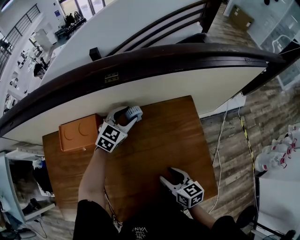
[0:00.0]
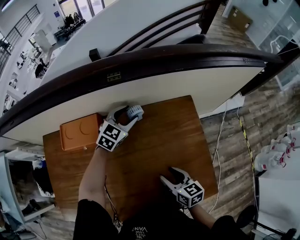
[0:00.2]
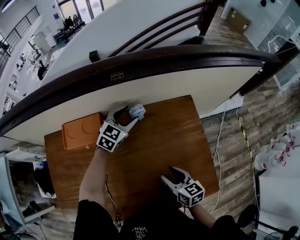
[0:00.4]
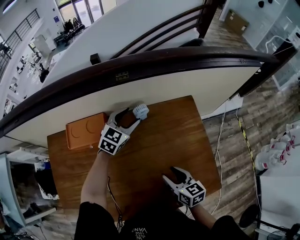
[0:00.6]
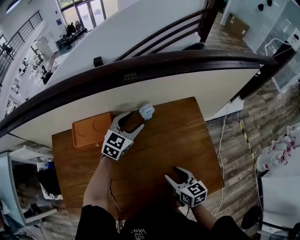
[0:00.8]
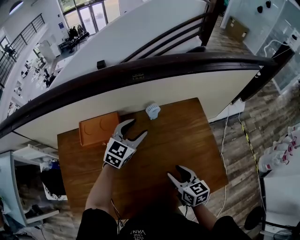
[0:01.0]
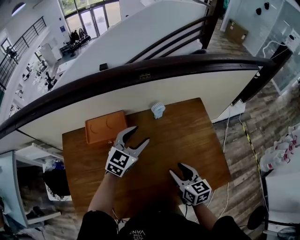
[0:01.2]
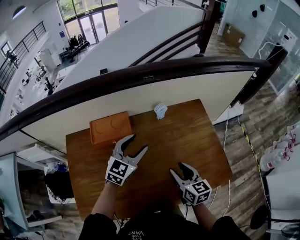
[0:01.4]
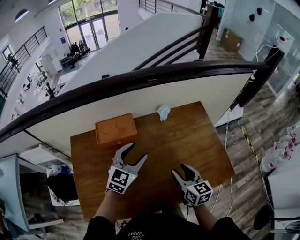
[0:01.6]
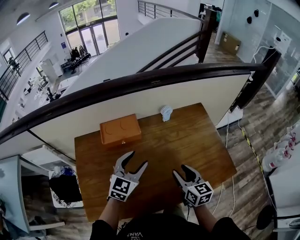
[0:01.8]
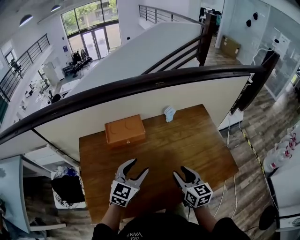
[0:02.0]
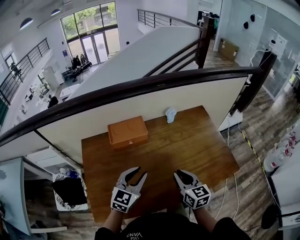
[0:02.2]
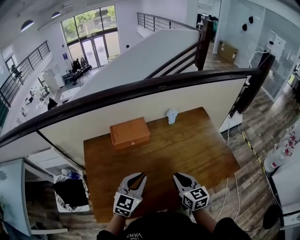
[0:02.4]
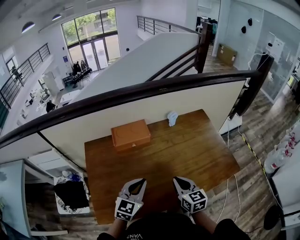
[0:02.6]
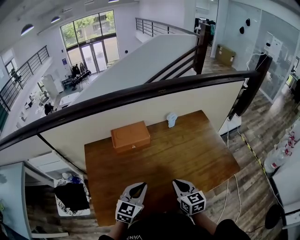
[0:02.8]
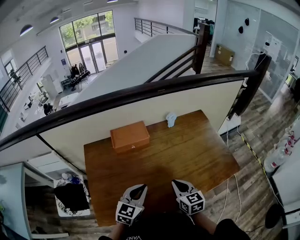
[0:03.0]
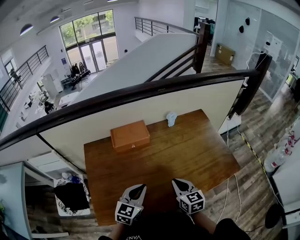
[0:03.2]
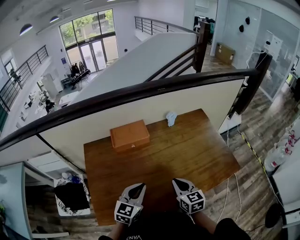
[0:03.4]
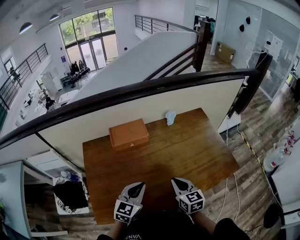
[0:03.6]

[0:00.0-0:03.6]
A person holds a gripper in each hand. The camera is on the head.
0:00.0 to 0:01.8: The left gripper shifts about 35 cm backward and to the left. The right gripper moves to the left, upward and backward, roughly 20 cm, and changes its angle by roughly 20 degrees.
0:01.8 to 0:03.6: The right gripper heads backward and to the left, covering roughly 10 cm, and closes up, while the left gripper moves backward, about 15 cm, and closes its fingers.

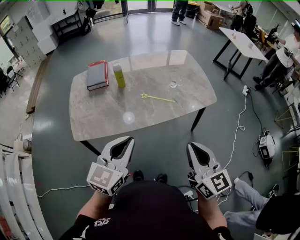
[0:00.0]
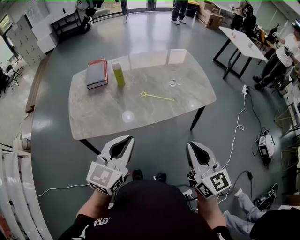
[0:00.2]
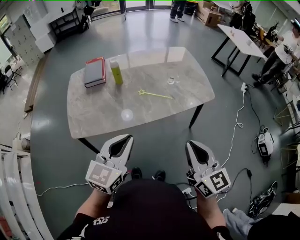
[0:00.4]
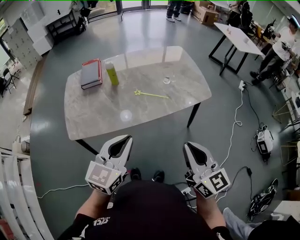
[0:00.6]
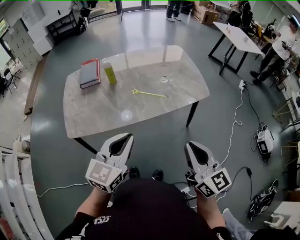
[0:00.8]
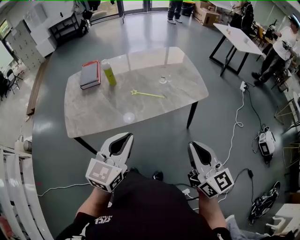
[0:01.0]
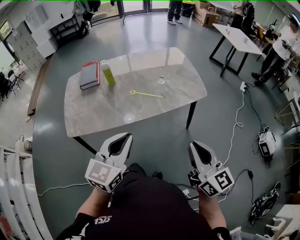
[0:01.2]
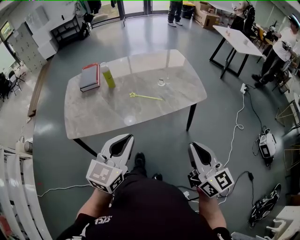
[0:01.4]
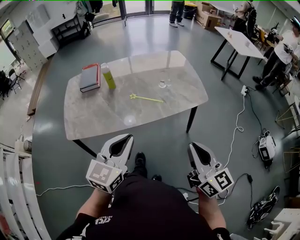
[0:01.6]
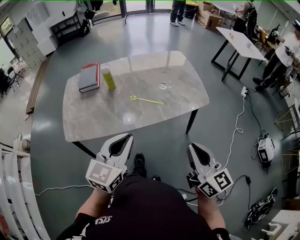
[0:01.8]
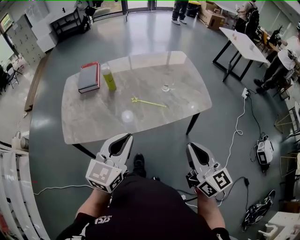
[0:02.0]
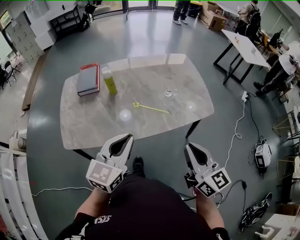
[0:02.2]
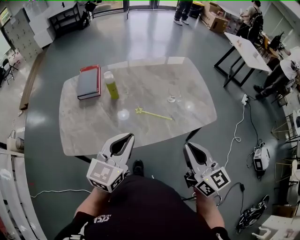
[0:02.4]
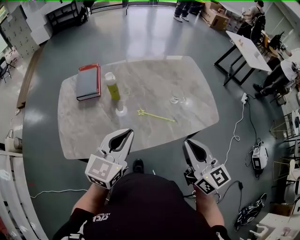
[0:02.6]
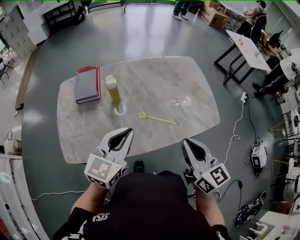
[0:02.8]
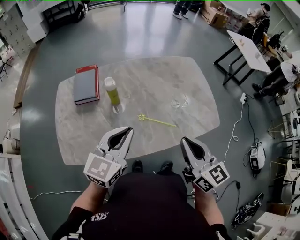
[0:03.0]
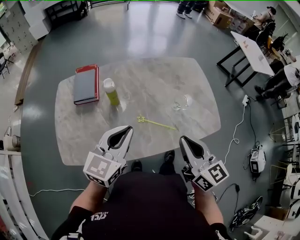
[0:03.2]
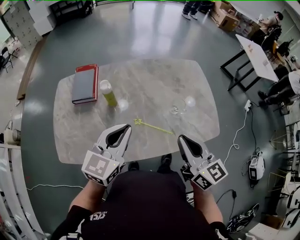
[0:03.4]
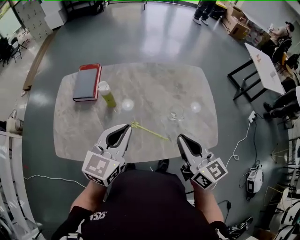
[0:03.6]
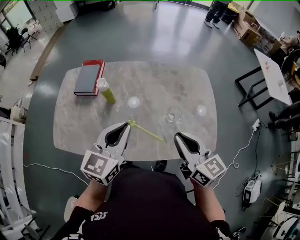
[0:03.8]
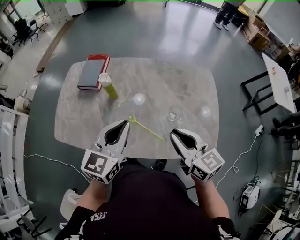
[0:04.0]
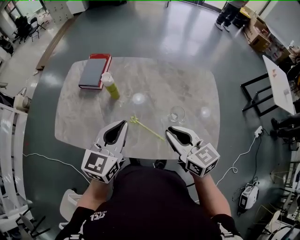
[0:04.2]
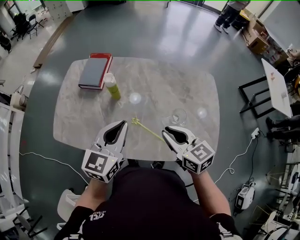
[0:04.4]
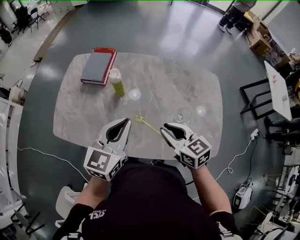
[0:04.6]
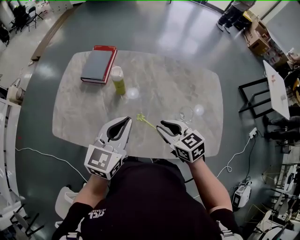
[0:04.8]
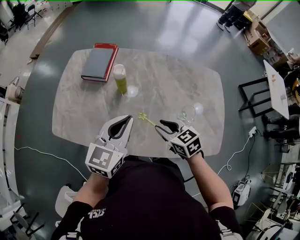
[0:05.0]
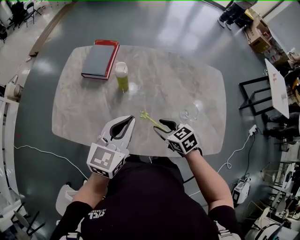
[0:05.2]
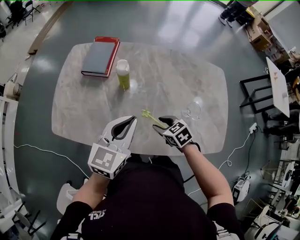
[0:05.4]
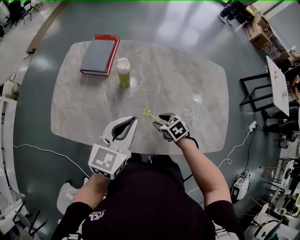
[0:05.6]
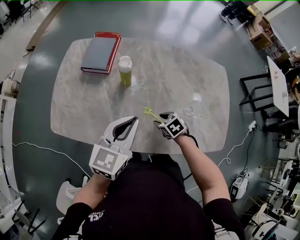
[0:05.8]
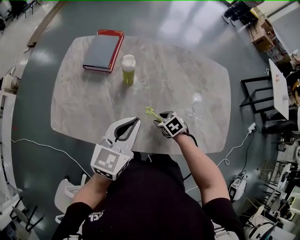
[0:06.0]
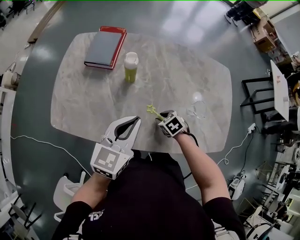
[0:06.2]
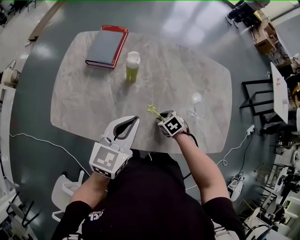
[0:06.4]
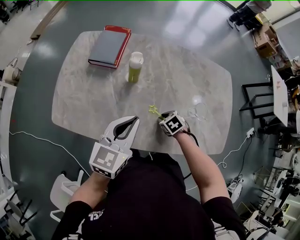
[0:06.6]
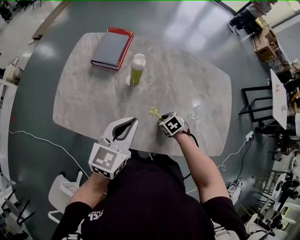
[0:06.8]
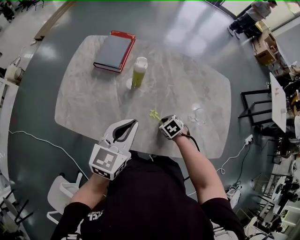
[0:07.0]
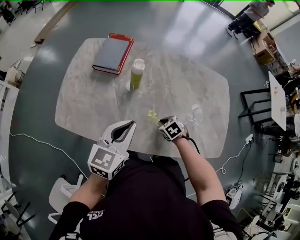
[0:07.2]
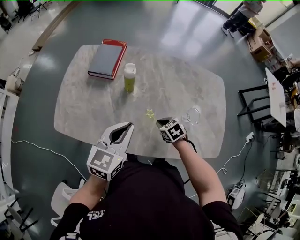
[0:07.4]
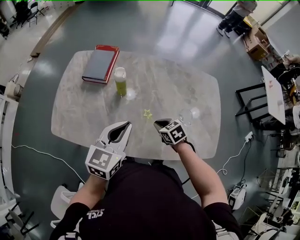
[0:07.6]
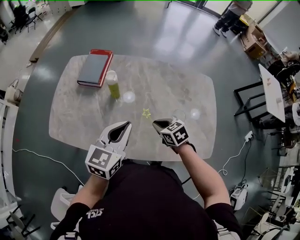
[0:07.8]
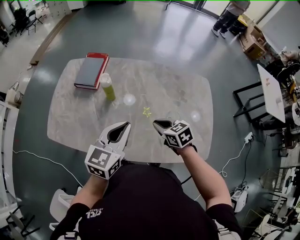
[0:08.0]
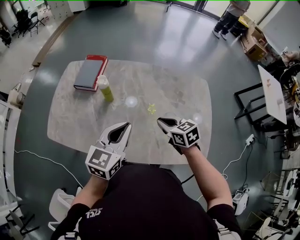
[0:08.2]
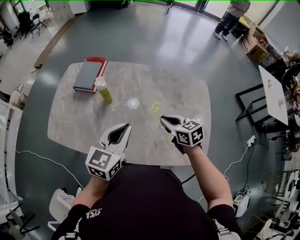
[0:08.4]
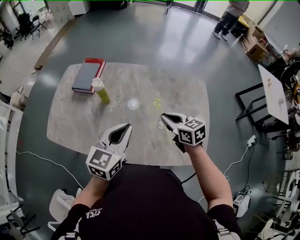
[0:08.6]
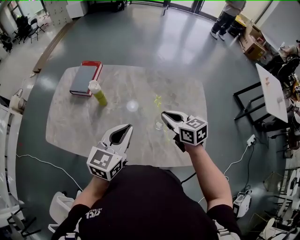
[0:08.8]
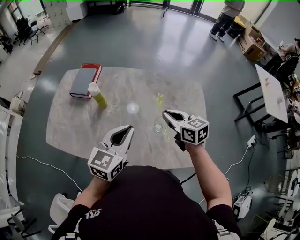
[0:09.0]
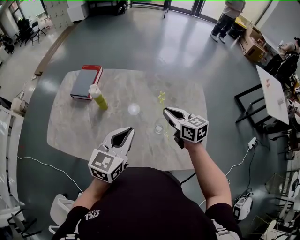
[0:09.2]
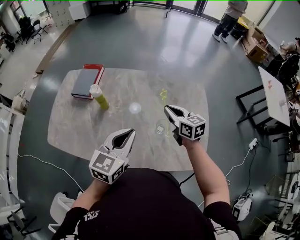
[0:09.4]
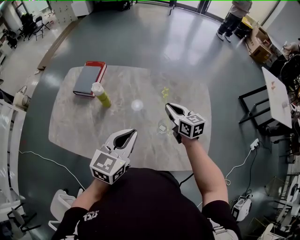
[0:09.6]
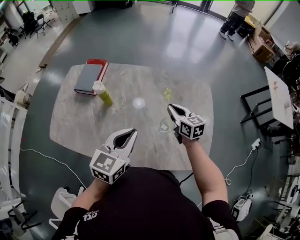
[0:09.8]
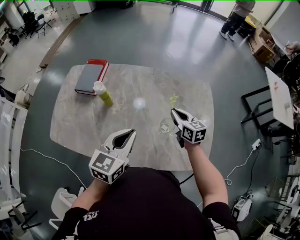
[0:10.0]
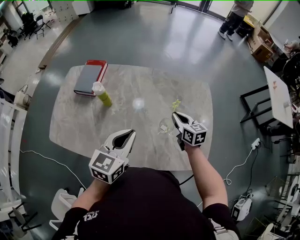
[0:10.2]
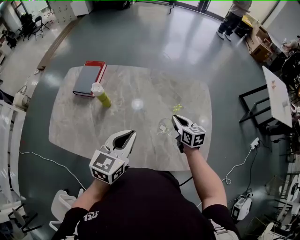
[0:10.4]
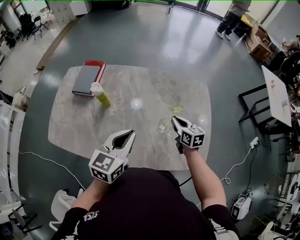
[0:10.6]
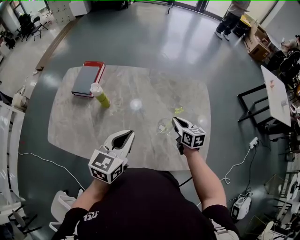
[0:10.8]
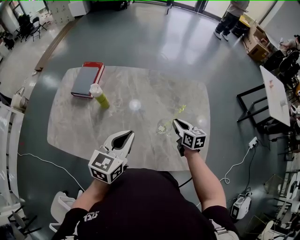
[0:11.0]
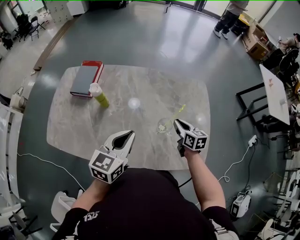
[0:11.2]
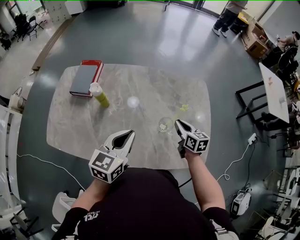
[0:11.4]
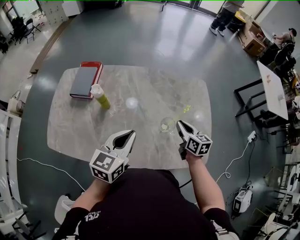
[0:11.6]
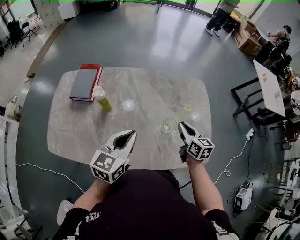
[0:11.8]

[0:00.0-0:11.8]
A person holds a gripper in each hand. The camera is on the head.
0:00.0 to 0:01.4: The two grippers go some 10 cm to the right.
0:01.4 to 0:03.0: The right gripper travels forward and to the left by roughly 30 cm, while the left gripper heads forward, covering about 25 cm.
0:03.0 to 0:04.4: The right gripper moves approximately 15 cm, and changes its angle by some 40 degrees. Meanwhile the left gripper ends up about 10 cm from where it was, and swivels about 30 degrees.
0:04.4 to 0:06.0: The left gripper travels downward by roughly 5 cm. The right gripper heads downward, covering approximately 30 cm, tilts its fingers about 40 degrees downward, and opens.
0:06.0 to 0:07.4: The right gripper closes.
0:07.4 to 0:08.8: The left gripper shifts some 15 cm to the right. The right gripper is displaced upward and to the right by roughly 25 cm, and points its fingers approximately 40 degrees further upward.
0:08.8 to 0:10.4: The right gripper is displaced downward and to the right by some 10 cm.
0:10.4 to 0:11.8: The right gripper shifts approximately 5 cm backward.

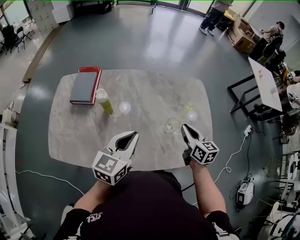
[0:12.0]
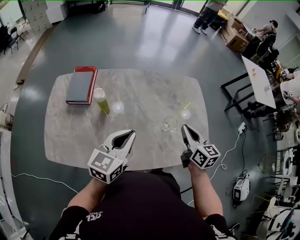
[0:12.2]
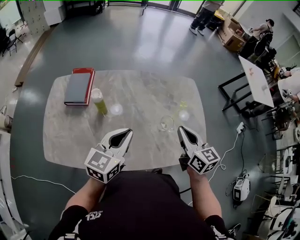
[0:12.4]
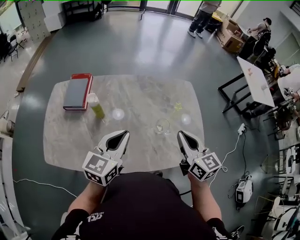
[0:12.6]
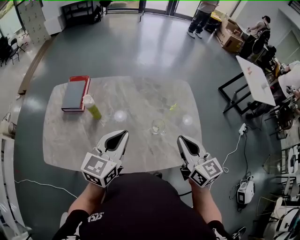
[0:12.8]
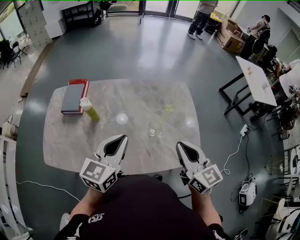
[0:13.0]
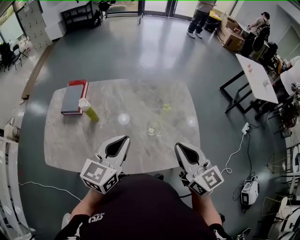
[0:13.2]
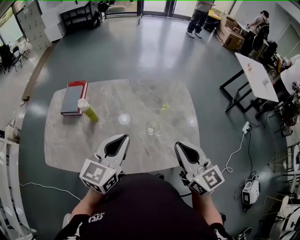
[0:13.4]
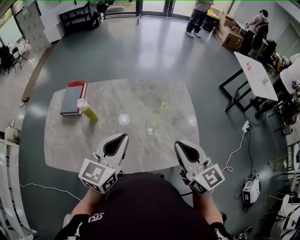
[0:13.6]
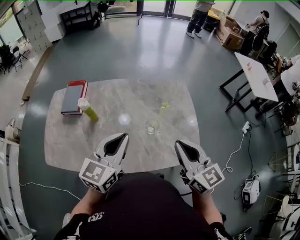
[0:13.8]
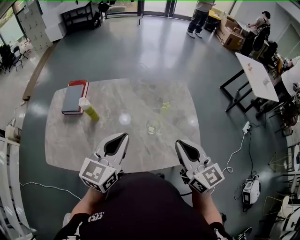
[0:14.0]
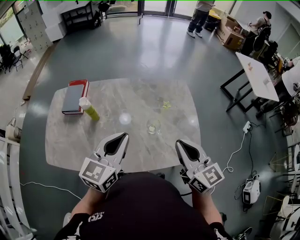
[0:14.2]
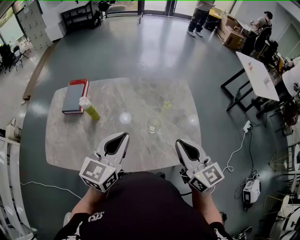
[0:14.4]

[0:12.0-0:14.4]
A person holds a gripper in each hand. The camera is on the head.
0:12.0 to 0:13.2: The left gripper moves to the right and upward, some 10 cm. The right gripper is displaced upward and backward by approximately 20 cm, and swivels about 20 degrees.
0:13.2 to 0:14.4: There are only small adjustments of the grippers.

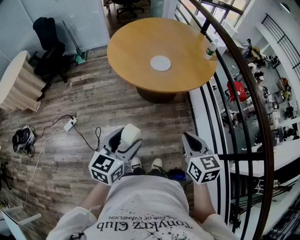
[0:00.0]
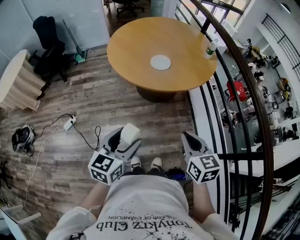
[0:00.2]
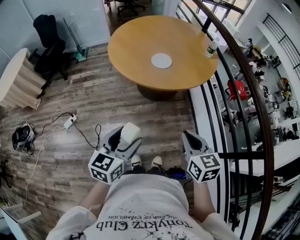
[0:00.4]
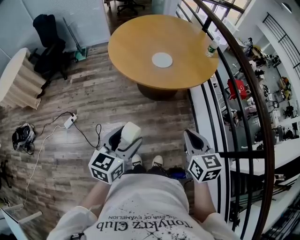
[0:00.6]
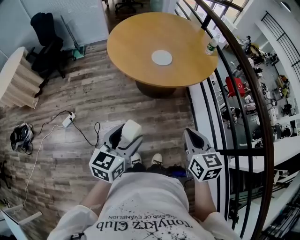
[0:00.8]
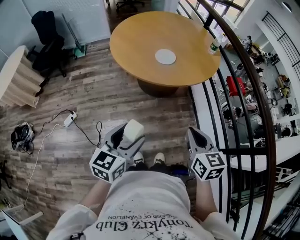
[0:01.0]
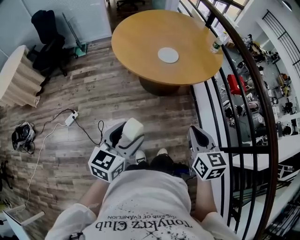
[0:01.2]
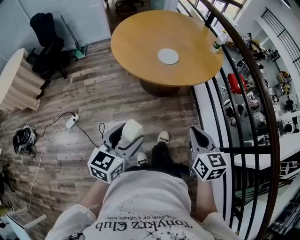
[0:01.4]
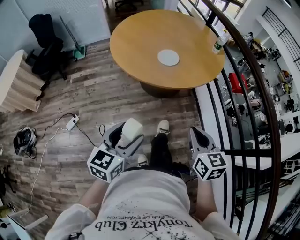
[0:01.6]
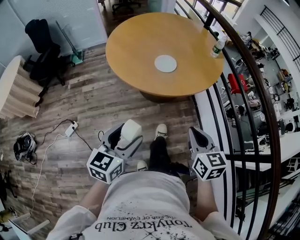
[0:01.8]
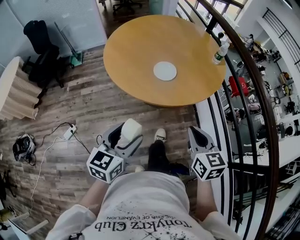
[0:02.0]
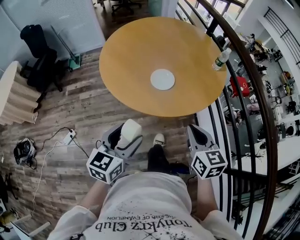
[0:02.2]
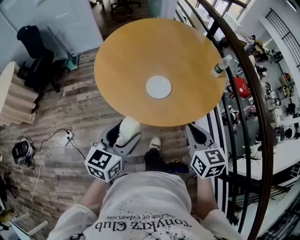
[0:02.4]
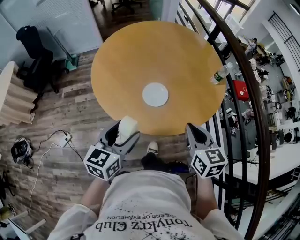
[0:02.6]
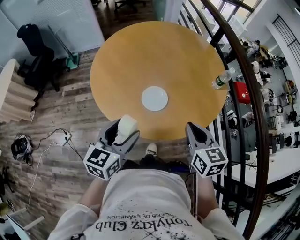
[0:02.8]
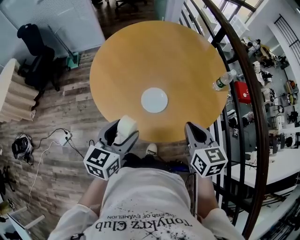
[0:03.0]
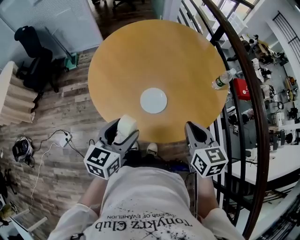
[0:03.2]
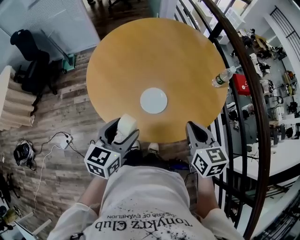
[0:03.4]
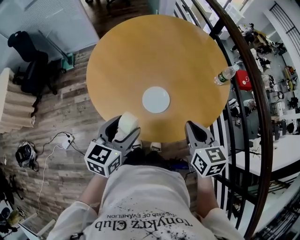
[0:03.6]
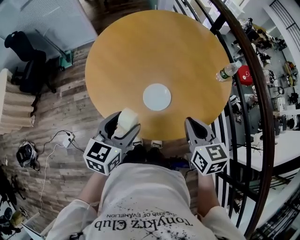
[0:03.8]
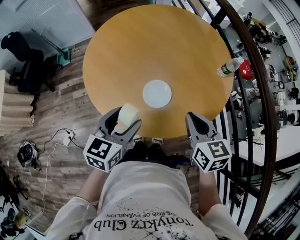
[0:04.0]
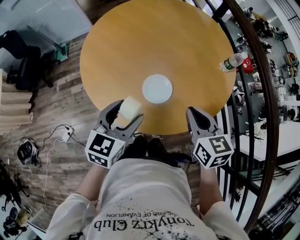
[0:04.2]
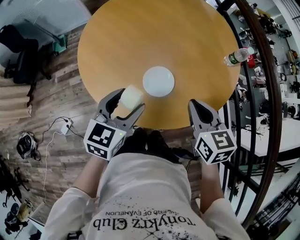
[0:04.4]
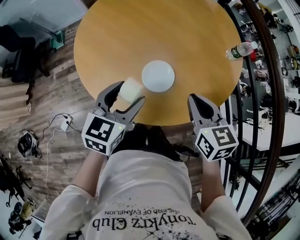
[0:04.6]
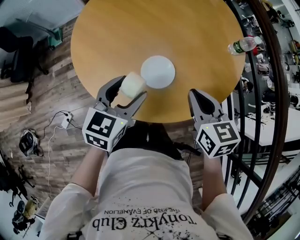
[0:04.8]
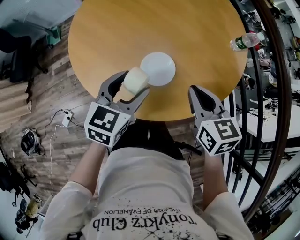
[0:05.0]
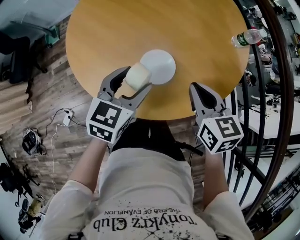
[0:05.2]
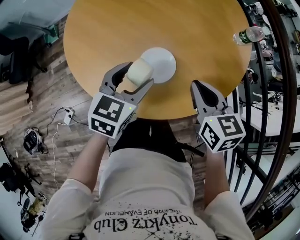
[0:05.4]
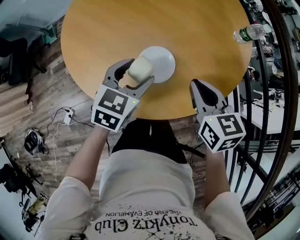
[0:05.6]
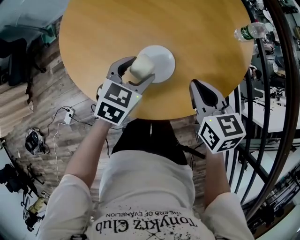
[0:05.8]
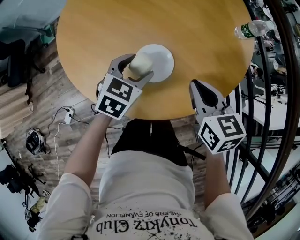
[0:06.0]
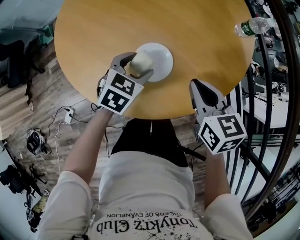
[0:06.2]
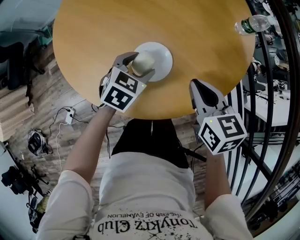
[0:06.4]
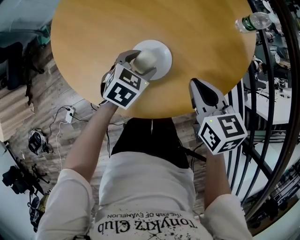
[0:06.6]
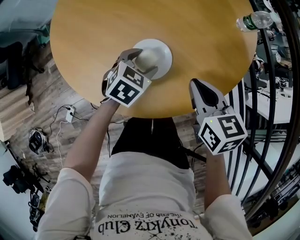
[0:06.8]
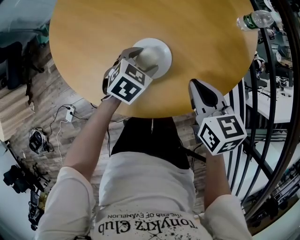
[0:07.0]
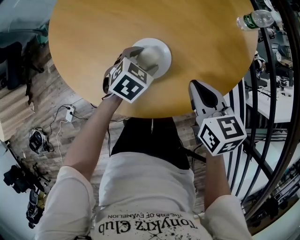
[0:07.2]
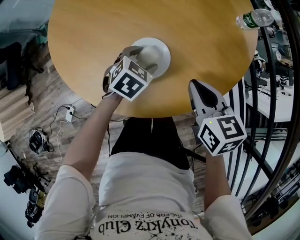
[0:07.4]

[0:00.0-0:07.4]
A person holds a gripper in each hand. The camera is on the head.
0:00.0 to 0:01.4: The left gripper goes roughly 5 cm to the left.
0:01.4 to 0:03.0: The grippers both shift forward by some 40 cm.
0:03.0 to 0:04.4: The right gripper travels forward by roughly 5 cm, while the left gripper travels forward by some 10 cm.
0:04.4 to 0:06.0: The right gripper moves downward, about 10 cm, while the left gripper moves downward, forward and to the right, roughly 20 cm, and swivels about 20 degrees.
0:06.0 to 0:07.4: The left gripper moves downward, some 10 cm.
